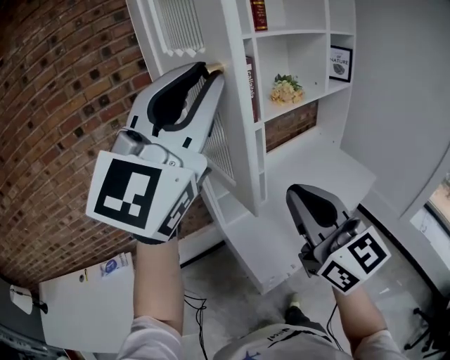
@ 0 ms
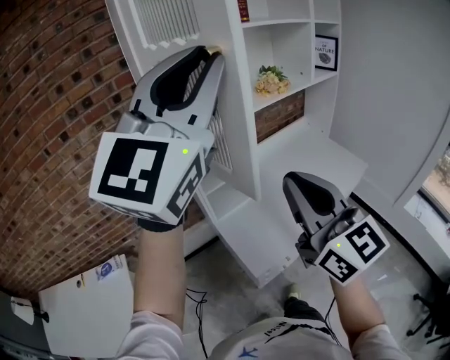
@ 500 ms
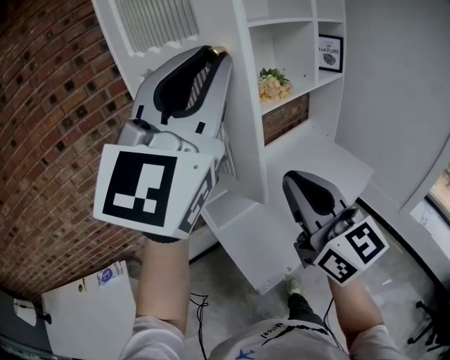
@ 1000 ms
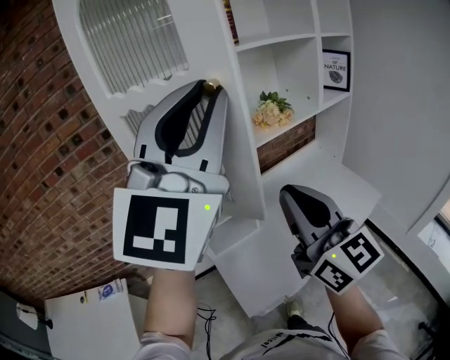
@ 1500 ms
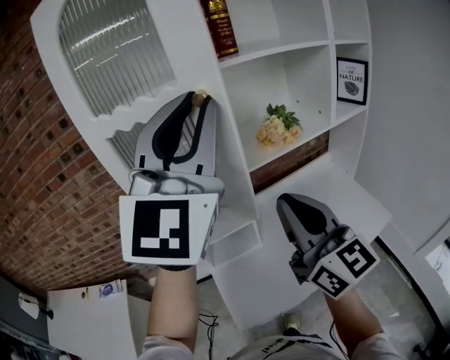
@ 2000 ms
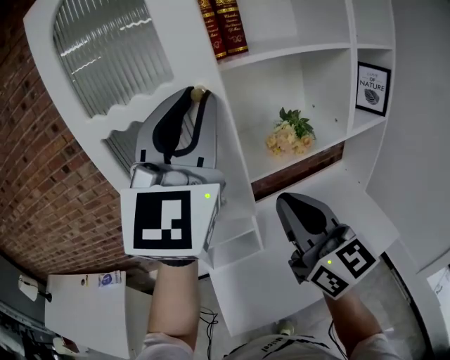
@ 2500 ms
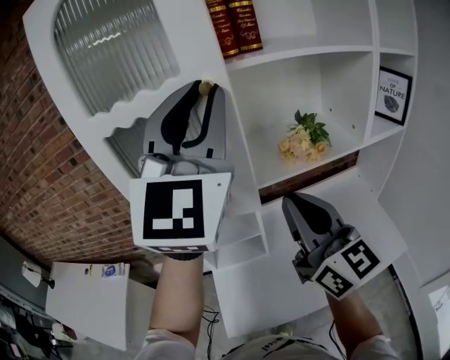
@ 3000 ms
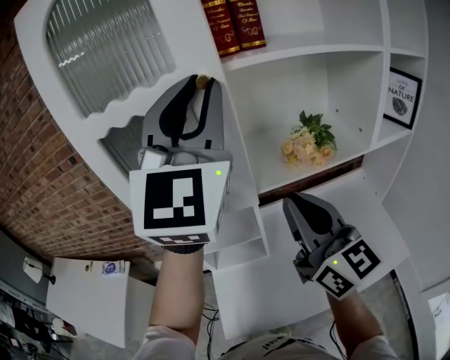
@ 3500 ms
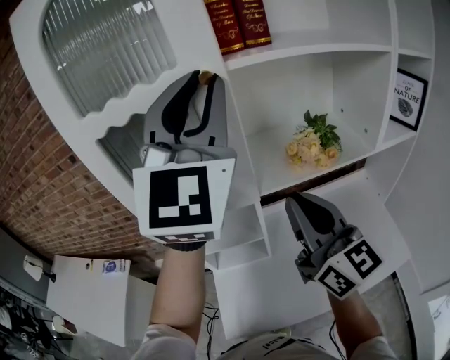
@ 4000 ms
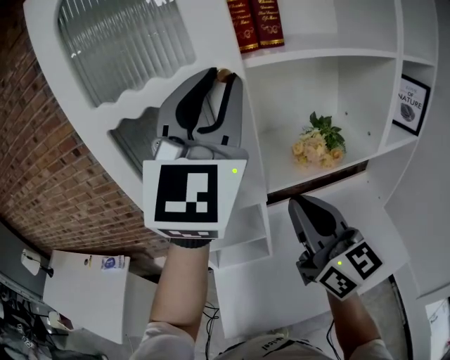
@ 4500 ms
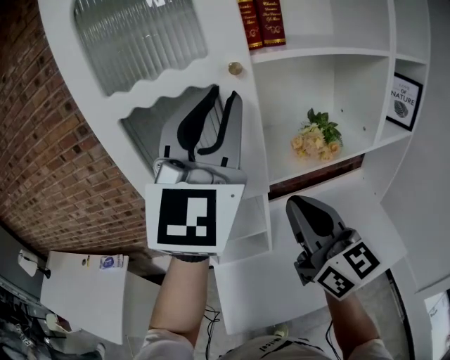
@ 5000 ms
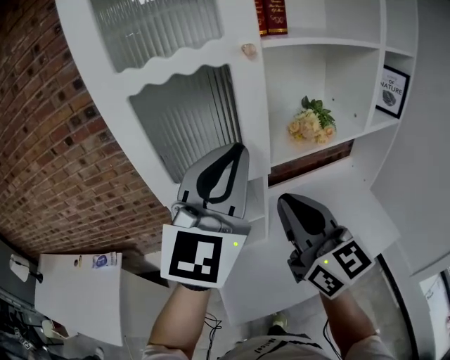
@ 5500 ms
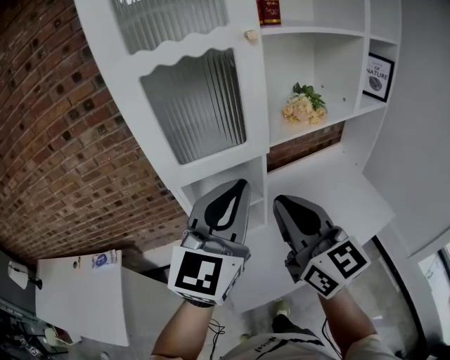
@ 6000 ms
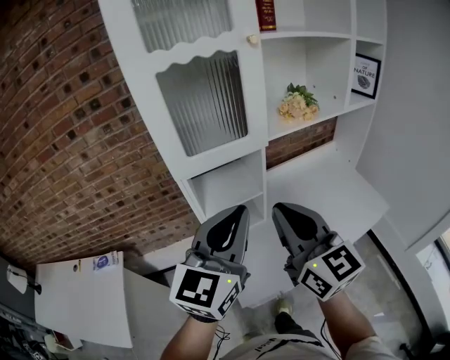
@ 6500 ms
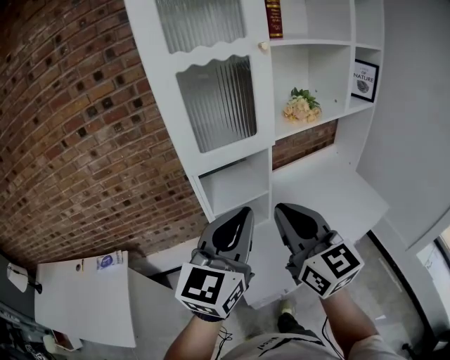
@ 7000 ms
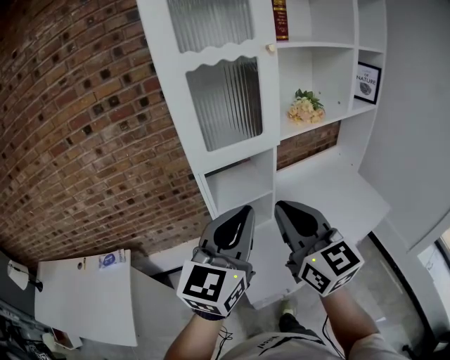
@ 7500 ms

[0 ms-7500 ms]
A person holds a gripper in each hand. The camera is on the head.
0 ms to 2000 ms: The grippers both shift forward and to the right by some 25 cm.
2000 ms to 4000 ms: The grippers both shift forward by about 15 cm.
4000 ms to 5500 ms: The right gripper travels to the left and backward by about 10 cm. Meanwhile the left gripper shifts about 15 cm downward and backward, and turns by some 20 degrees.
5500 ms to 7500 ms: The left gripper is displaced backward, downward and to the left by roughly 20 cm, and rotates approximately 20 degrees. The right gripper goes about 15 cm backward and to the left.

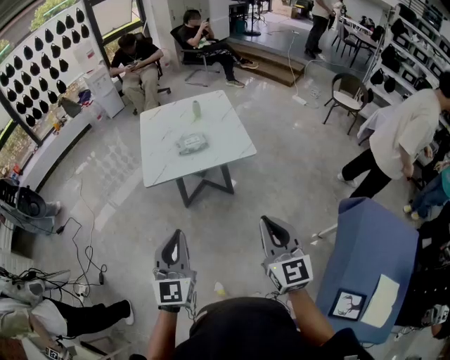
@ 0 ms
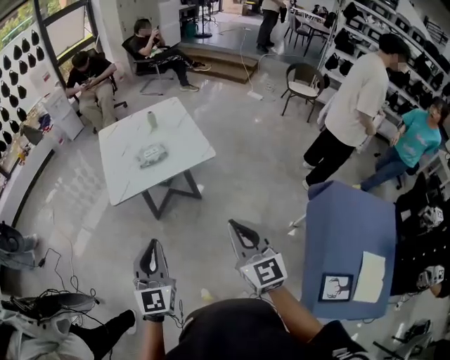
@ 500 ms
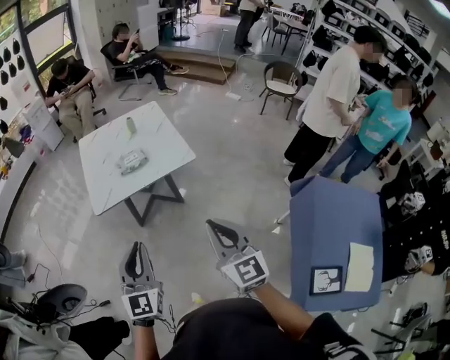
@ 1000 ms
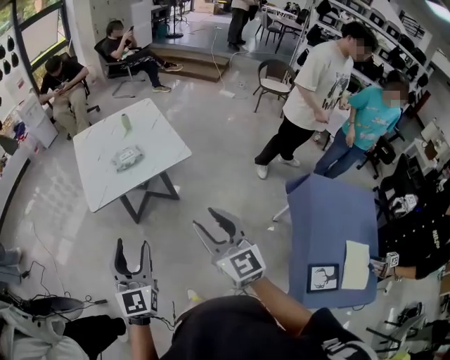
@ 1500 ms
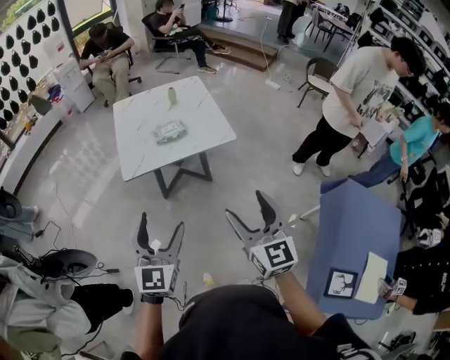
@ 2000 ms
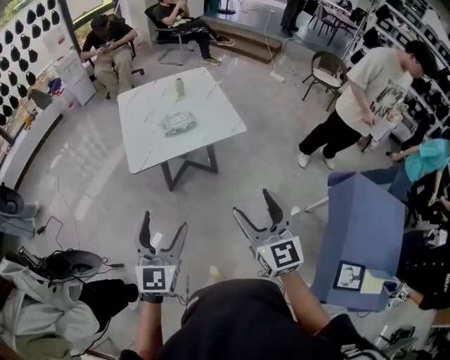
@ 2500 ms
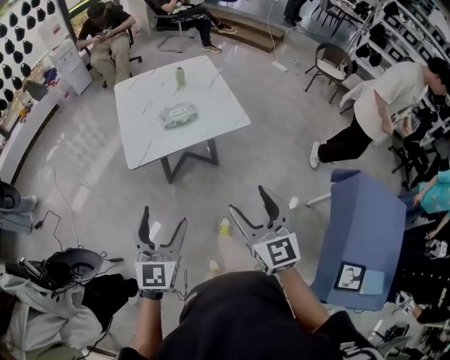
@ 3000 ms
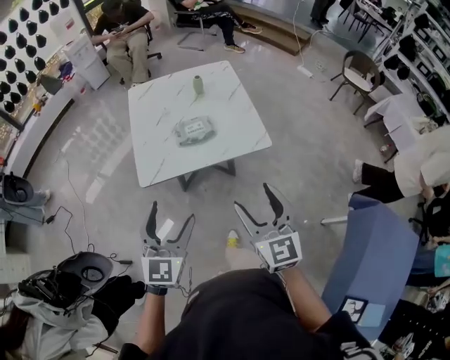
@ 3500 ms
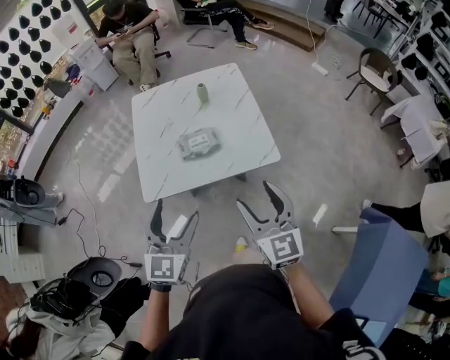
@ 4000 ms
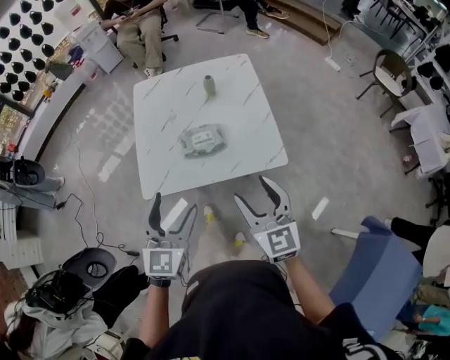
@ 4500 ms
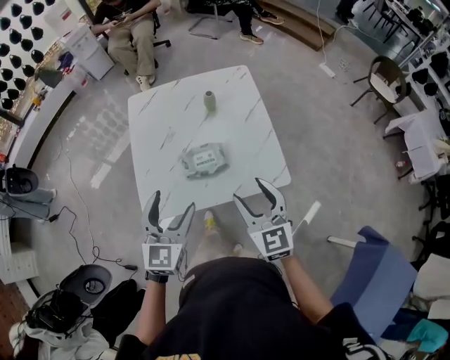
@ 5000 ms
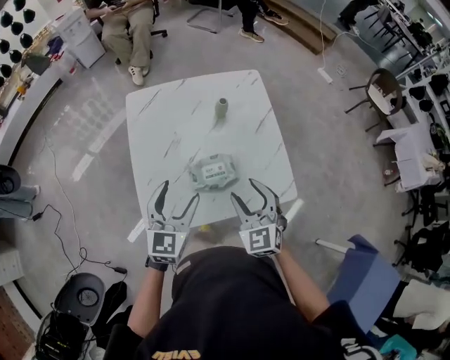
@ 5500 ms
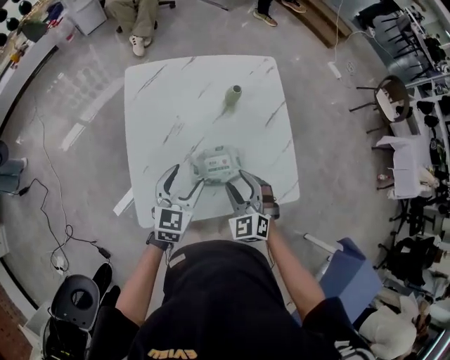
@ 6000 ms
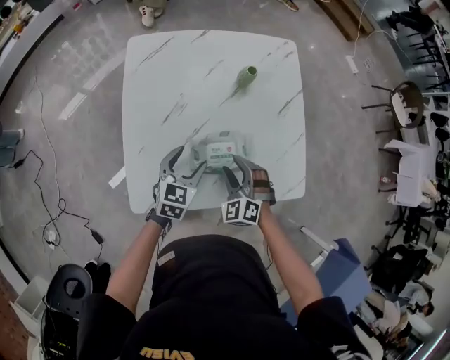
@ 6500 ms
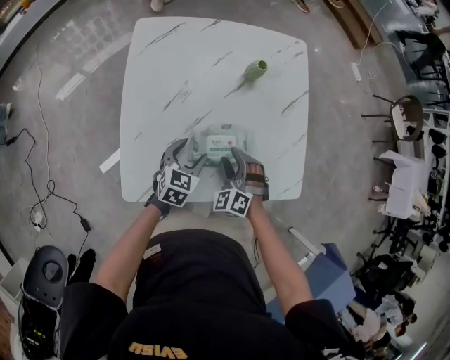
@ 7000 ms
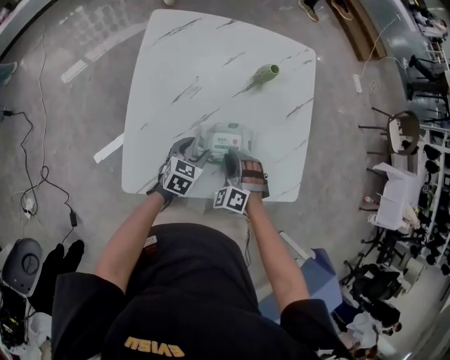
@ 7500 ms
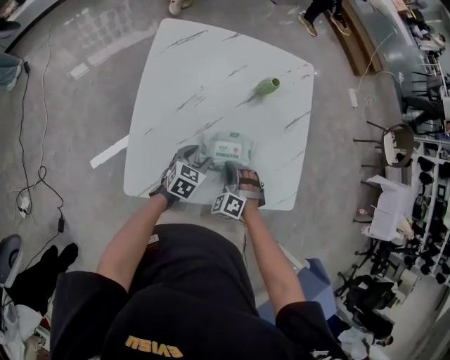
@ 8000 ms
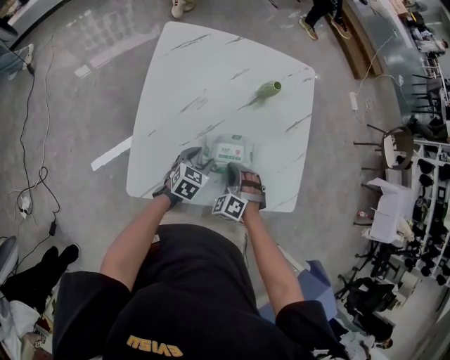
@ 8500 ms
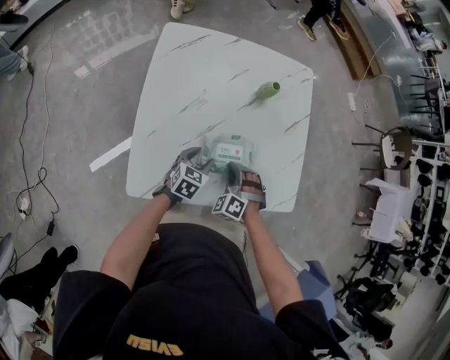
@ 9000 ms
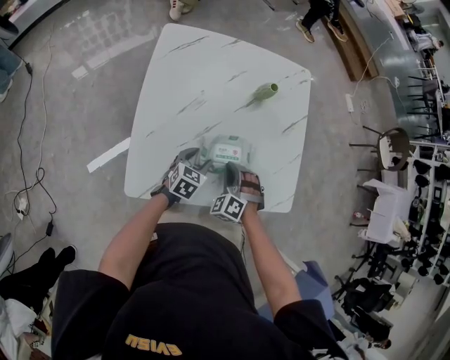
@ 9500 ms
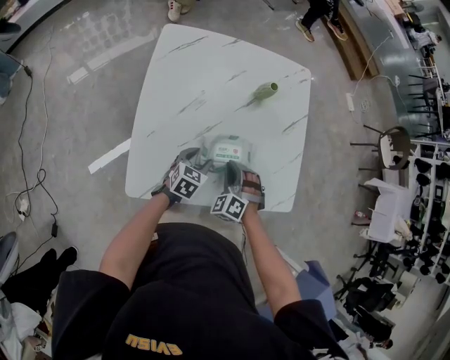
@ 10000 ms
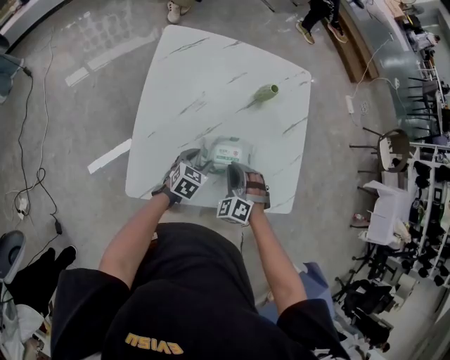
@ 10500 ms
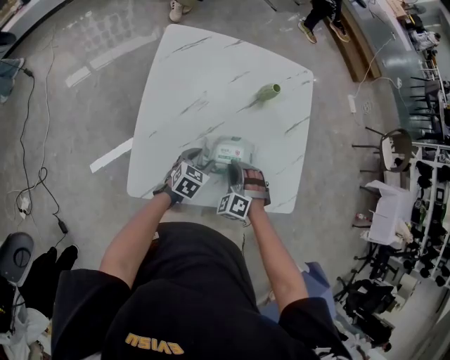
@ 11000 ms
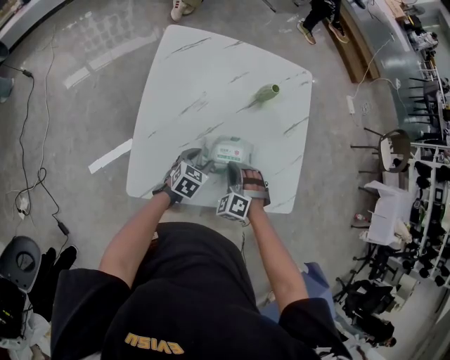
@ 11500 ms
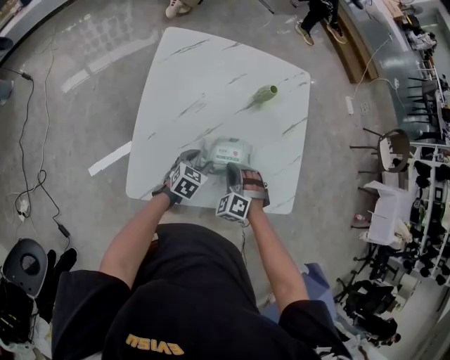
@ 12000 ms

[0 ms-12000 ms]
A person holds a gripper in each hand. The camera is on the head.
0 ms to 2000 ms: The right gripper shifts roughly 5 cm to the left, and opens up; the left gripper opens its fingers.
2000 ms to 4000 ms: The grippers both shift forward by about 30 cm.
4000 ms to 6000 ms: The left gripper travels forward and downward by some 40 cm. Meanwhile the right gripper travels forward, downward and to the left by approximately 40 cm, and turns by roughly 40 degrees.
6000 ms to 8000 ms: The grippers both shift downward by roughly 20 cm. The right gripper turns by about 30 degrees, and closes its fingers. Meanwhile the left gripper turns by about 20 degrees.
8000 ms to 10000 ms: The grippers move only a little.
10000 ms to 12000 ms: The grippers make only small movements.

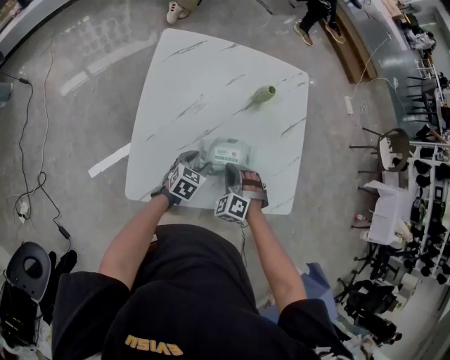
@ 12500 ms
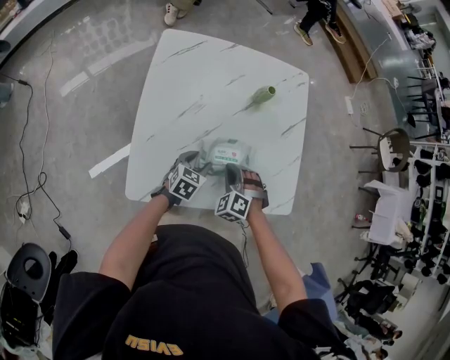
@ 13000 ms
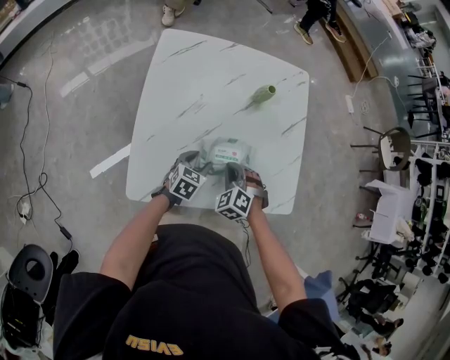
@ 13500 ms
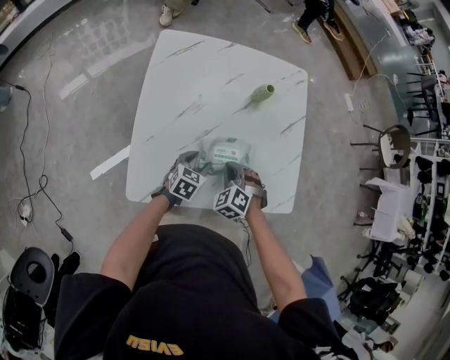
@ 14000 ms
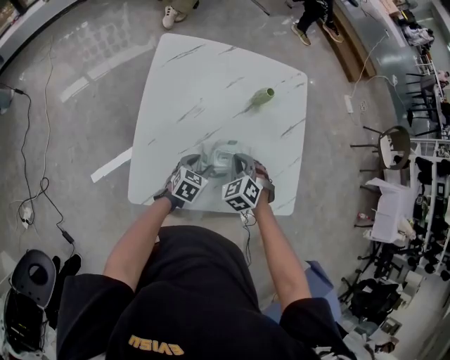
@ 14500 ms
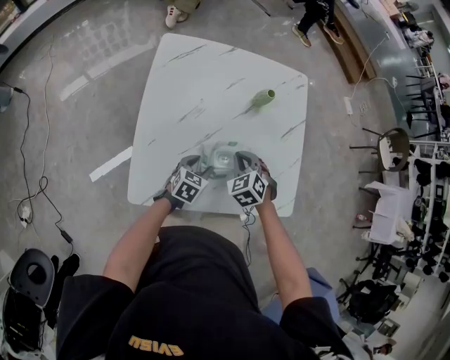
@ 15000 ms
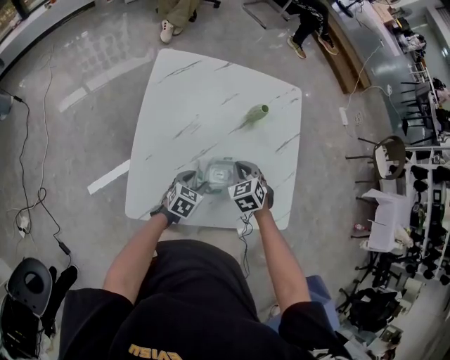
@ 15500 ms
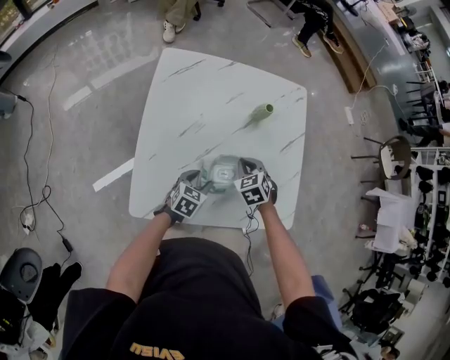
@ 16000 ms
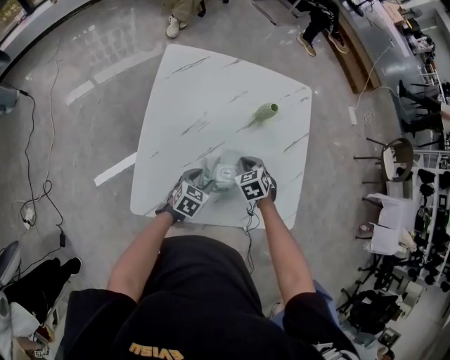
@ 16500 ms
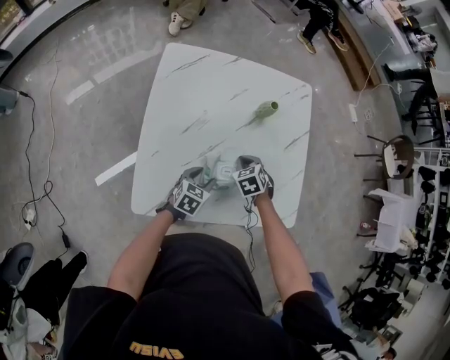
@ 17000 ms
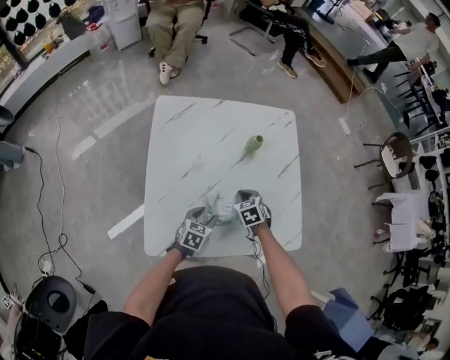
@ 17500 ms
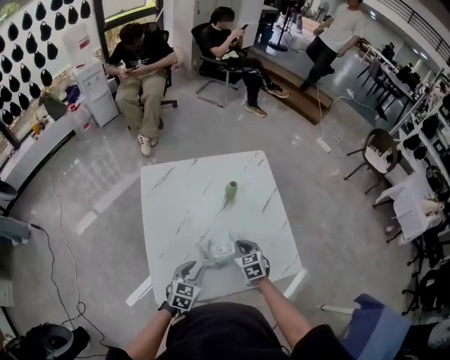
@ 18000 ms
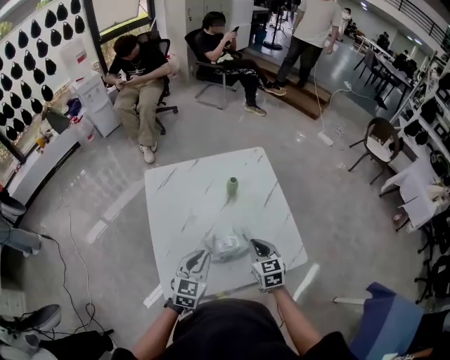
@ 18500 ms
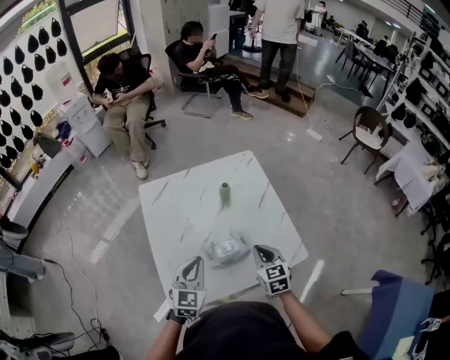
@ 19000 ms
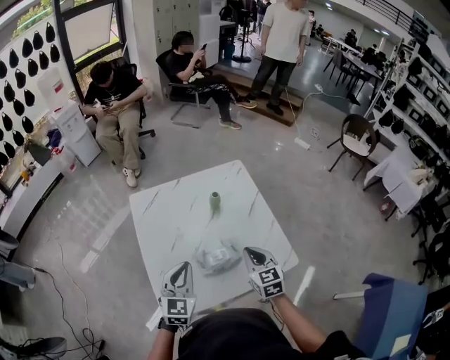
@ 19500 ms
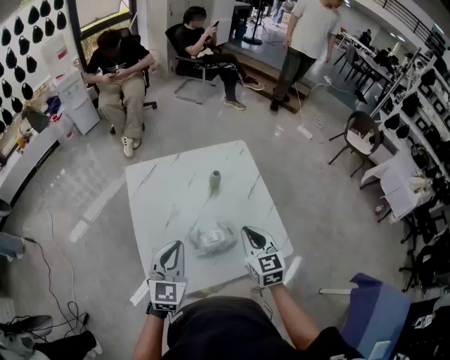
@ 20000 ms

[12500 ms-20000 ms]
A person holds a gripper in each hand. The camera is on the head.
12500 ms to 14500 ms: The right gripper moves roughly 5 cm.
14500 ms to 16500 ms: The right gripper is displaced forward by some 5 cm, and swivels approximately 20 degrees.
16500 ms to 18000 ms: The right gripper moves upward, about 5 cm, and turns by about 30 degrees, while the left gripper goes approximately 10 cm upward.
18000 ms to 20000 ms: Both grippers travel together upward, some 20 cm. The left gripper swivels about 30 degrees. The right gripper rotates roughly 20 degrees.
